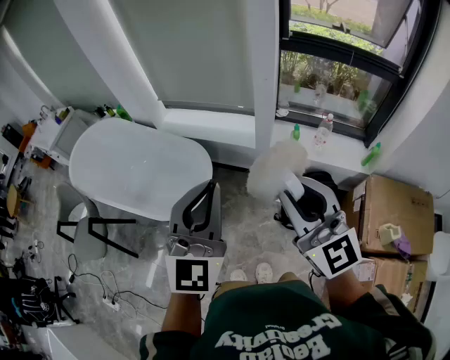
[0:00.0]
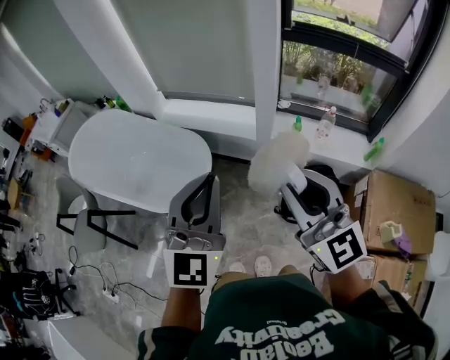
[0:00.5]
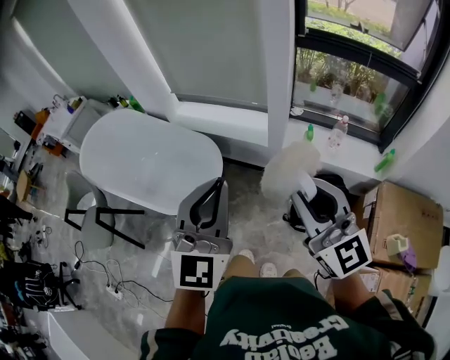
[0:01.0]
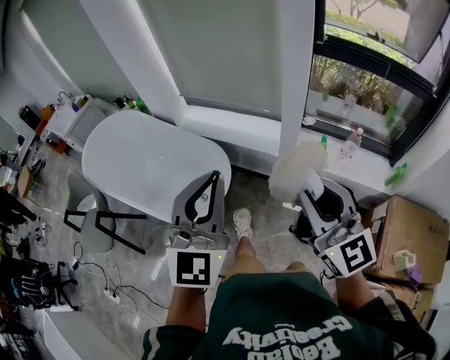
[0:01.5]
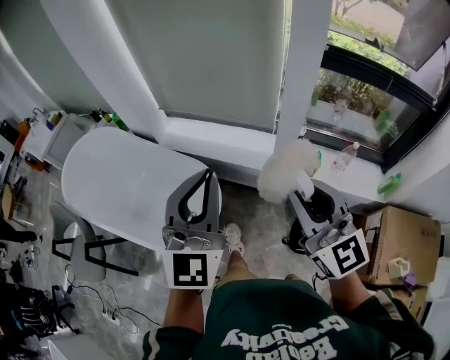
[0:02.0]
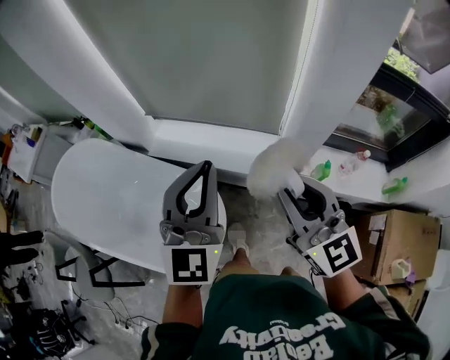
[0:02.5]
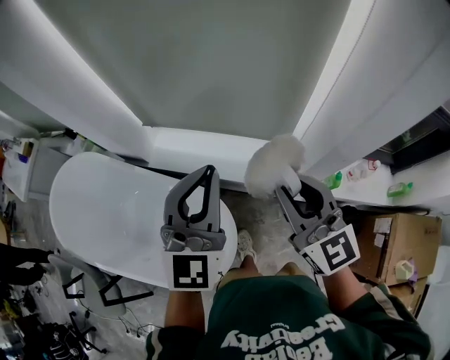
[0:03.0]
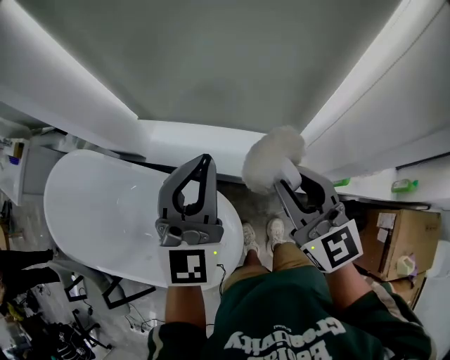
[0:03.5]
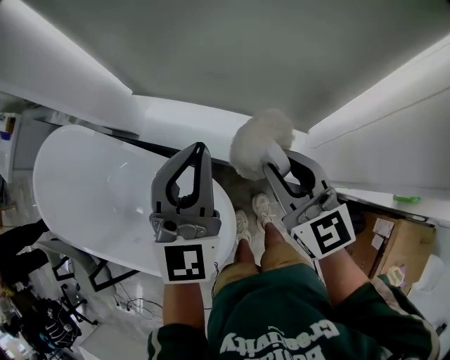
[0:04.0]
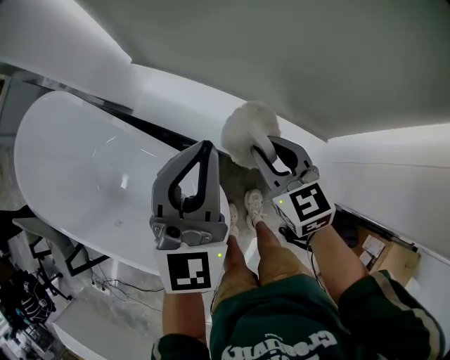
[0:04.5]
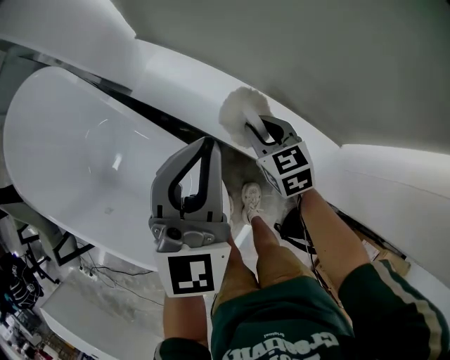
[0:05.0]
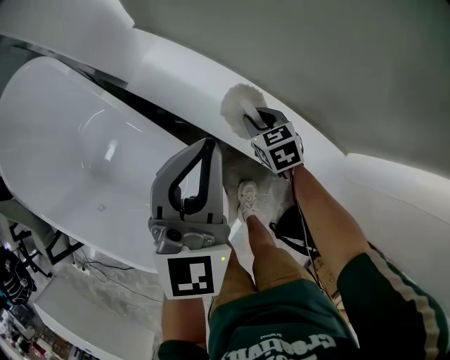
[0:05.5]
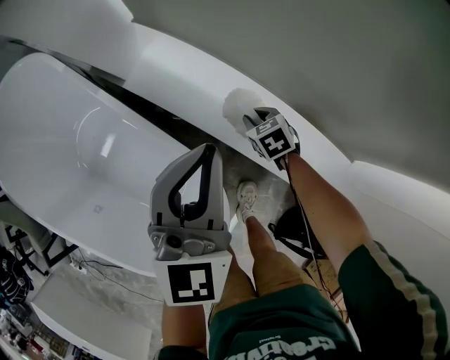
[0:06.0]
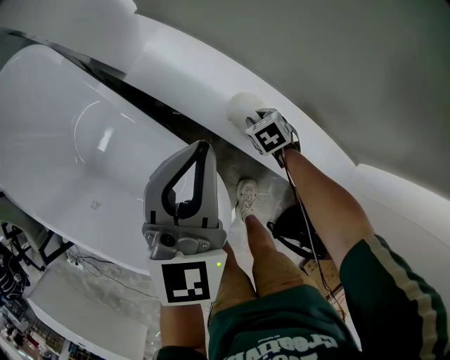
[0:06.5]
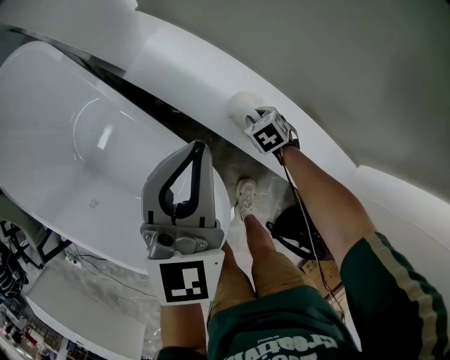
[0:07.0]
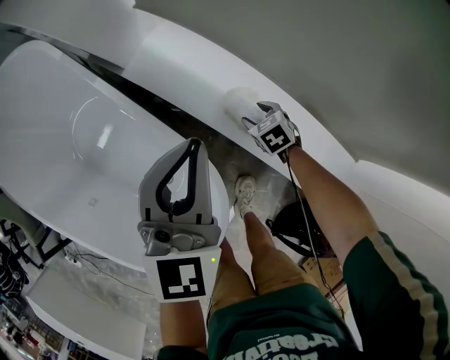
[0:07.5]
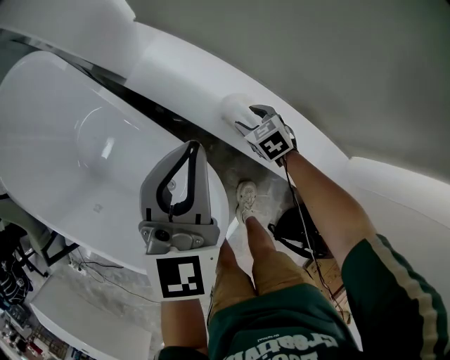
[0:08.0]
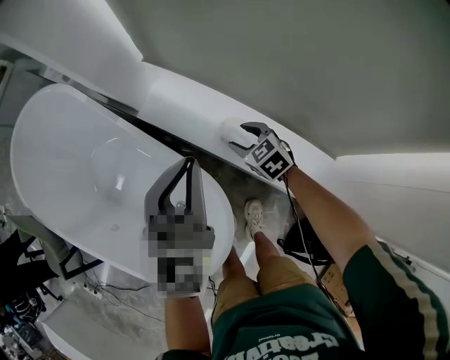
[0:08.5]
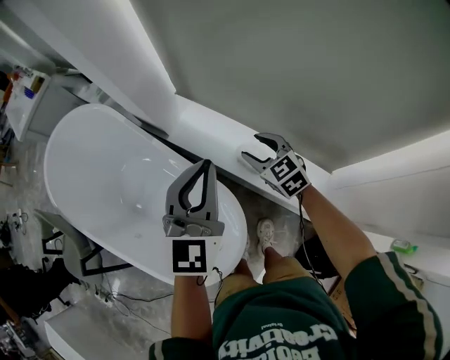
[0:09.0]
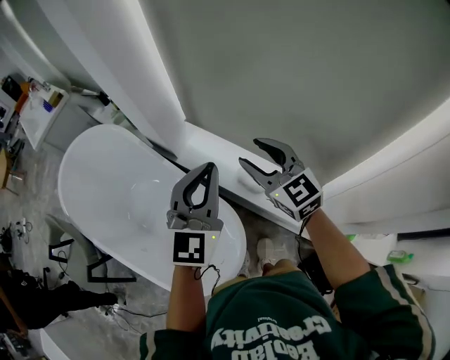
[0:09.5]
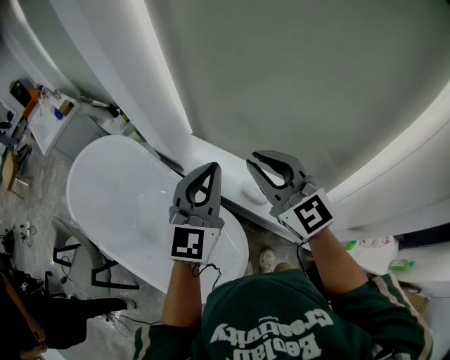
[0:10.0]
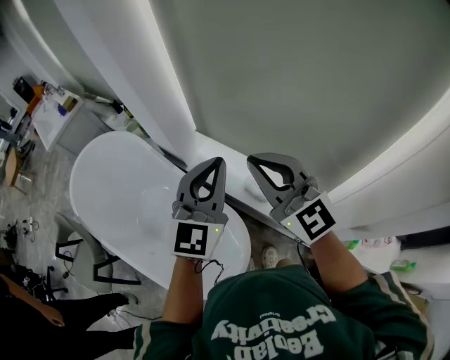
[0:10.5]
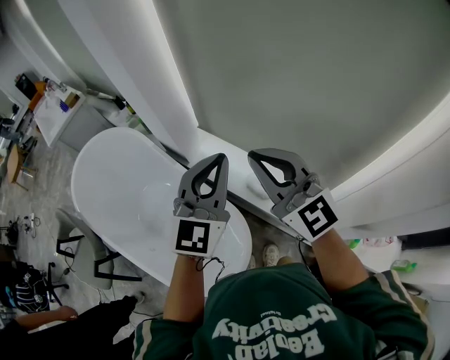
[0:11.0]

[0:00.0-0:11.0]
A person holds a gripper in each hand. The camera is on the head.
0:00.0 to 0:02.0: Both grippers move forward, roughly 20 cm.
0:02.0 to 0:03.5: The grippers both shift forward by roughly 35 cm.
0:03.5 to 0:05.5: The right gripper travels downward and forward by some 50 cm, and points its fingers about 50 degrees further downward. The left gripper travels downward and forward by some 25 cm, and turns by some 30 degrees.
0:05.5 to 0:07.5: The right gripper is displaced downward by approximately 15 cm, and opens its fingers; the left gripper travels downward by some 5 cm.
0:07.5 to 0:09.0: The right gripper goes some 35 cm upward, and tilts its fingers about 30 degrees upward. Meanwhile the left gripper goes about 20 cm upward.
0:09.0 to 0:11.0: The right gripper travels upward by approximately 35 cm, angles its fingers upward, by some 40 degrees, and closes. The left gripper heads upward, covering approximately 15 cm.

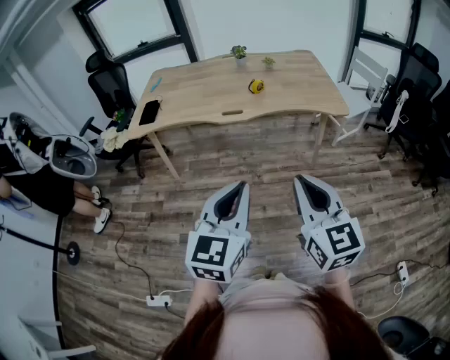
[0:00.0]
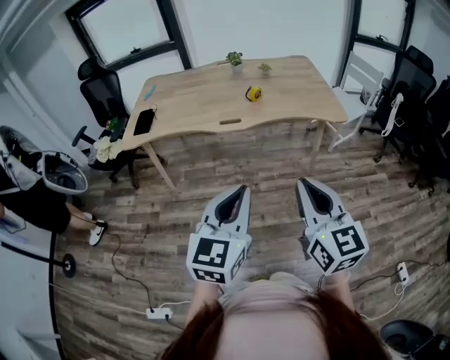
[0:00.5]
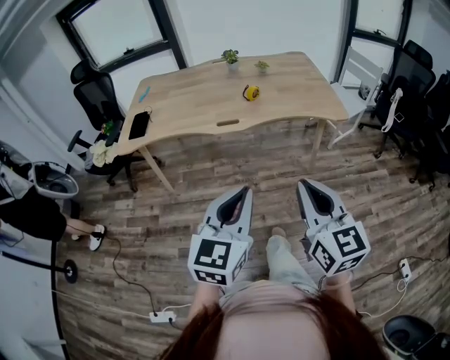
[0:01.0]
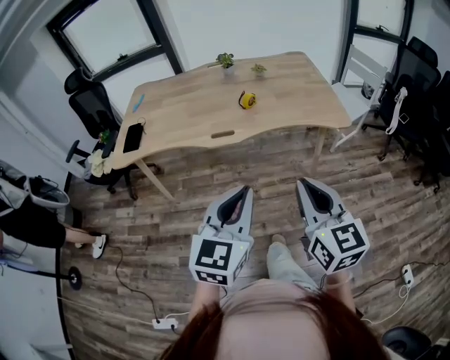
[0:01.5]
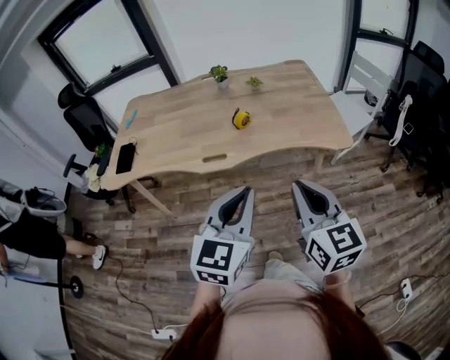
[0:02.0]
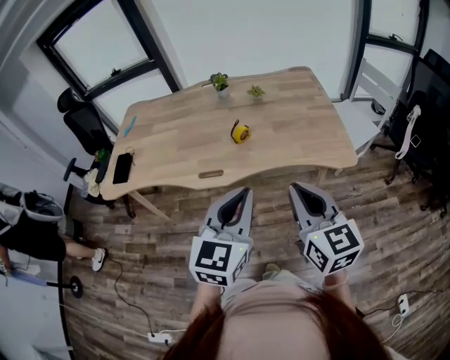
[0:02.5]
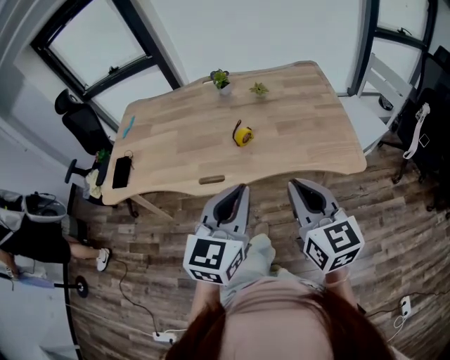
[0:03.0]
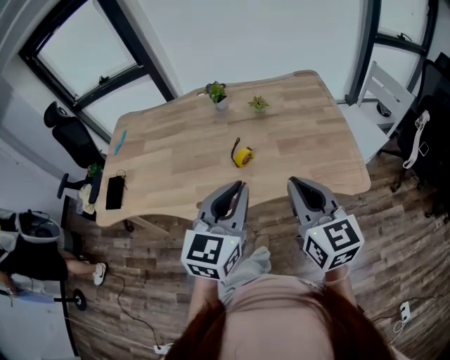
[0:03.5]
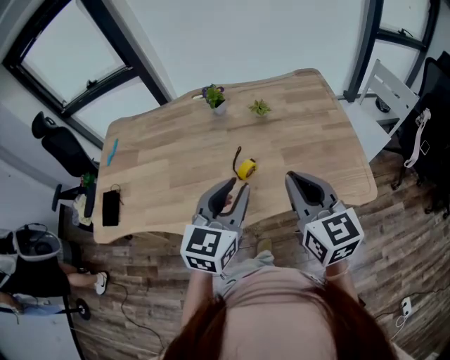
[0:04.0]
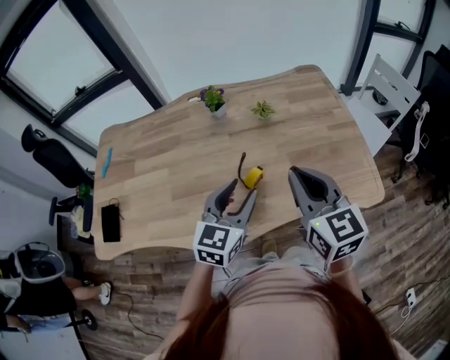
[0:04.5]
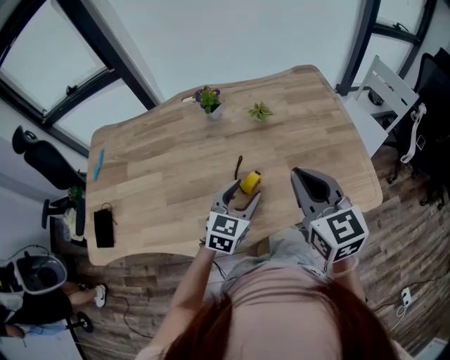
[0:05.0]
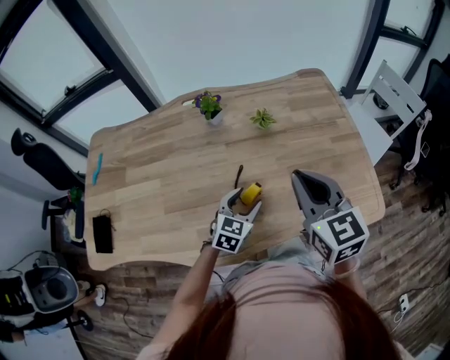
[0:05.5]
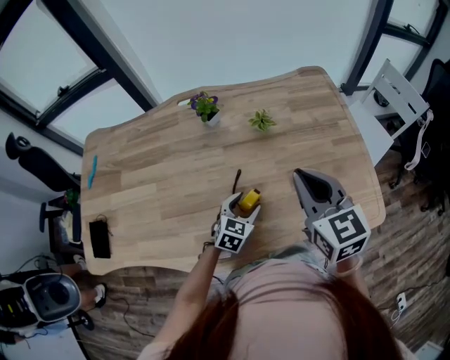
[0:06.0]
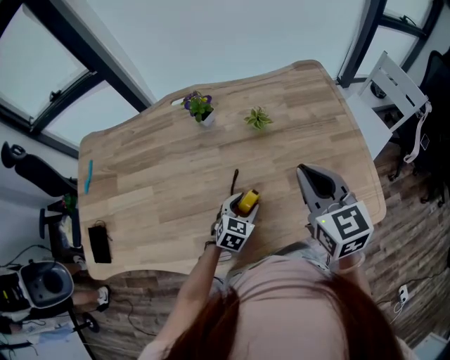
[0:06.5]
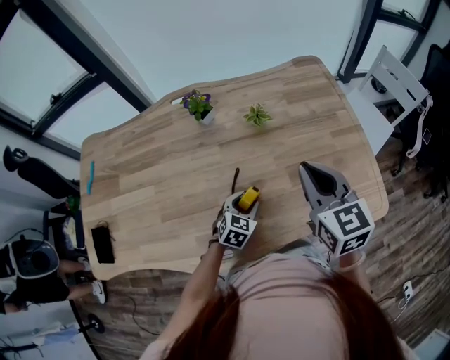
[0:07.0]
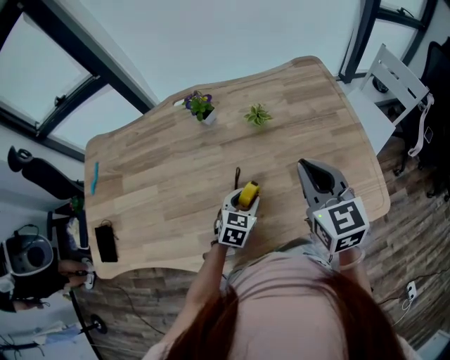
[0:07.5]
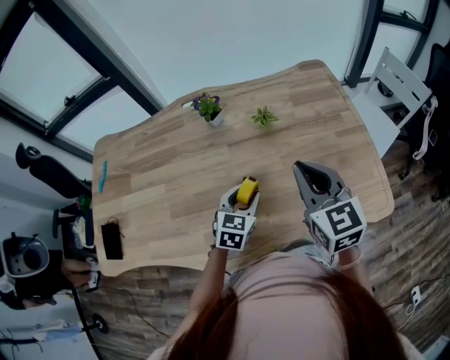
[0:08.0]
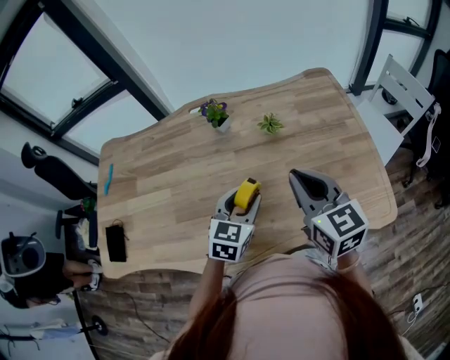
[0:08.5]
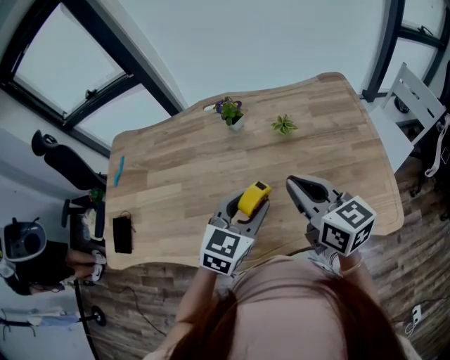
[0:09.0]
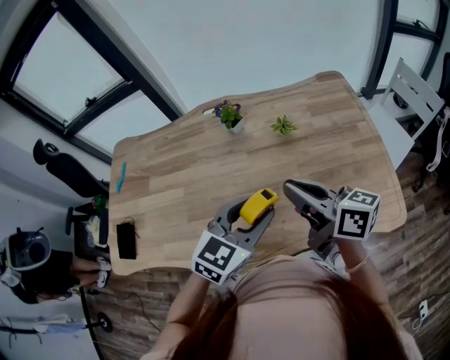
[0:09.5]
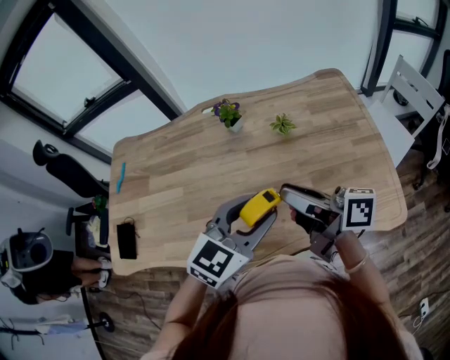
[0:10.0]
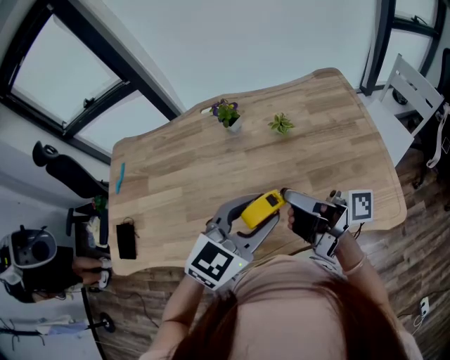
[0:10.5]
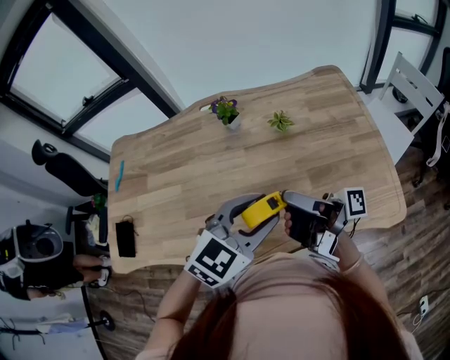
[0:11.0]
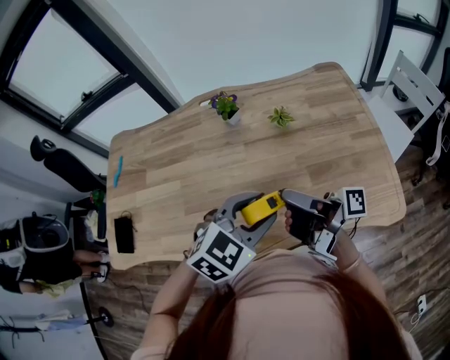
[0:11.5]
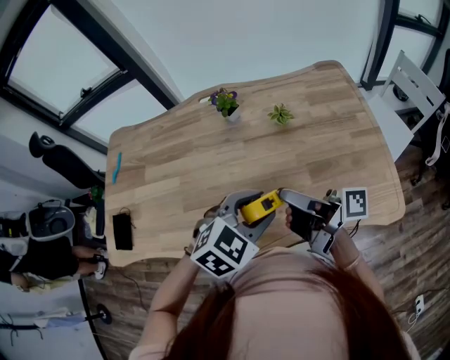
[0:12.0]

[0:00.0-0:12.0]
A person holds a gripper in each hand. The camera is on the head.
0:00.0 to 0:02.0: Both grippers travel together forward, roughly 25 cm.
0:02.0 to 0:04.0: Both grippers move forward, roughly 35 cm. The left gripper opens its fingers.
0:04.0 to 0:06.0: The left gripper shifts about 30 cm downward and forward, rotates approximately 30 degrees, and opens its fingers, while the right gripper heads forward, covering roughly 15 cm.
0:06.0 to 0:08.0: The left gripper heads upward, covering roughly 5 cm.
0:08.0 to 0:10.0: The right gripper is displaced to the left by approximately 5 cm, and rolls clockwise, seen from behind, by roughly 60 degrees. The left gripper shifts about 20 cm upward, and turns by roughly 20 degrees.
0:10.0 to 0:12.0: The right gripper swivels approximately 20 degrees. Meanwhile the left gripper travels downward by about 5 cm, and swivels some 20 degrees.

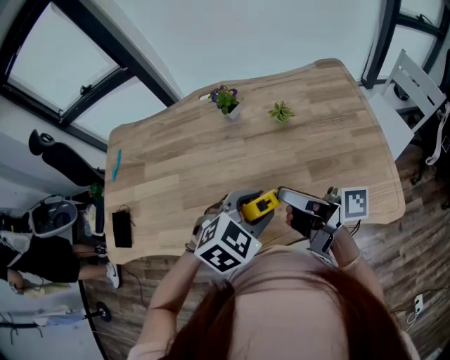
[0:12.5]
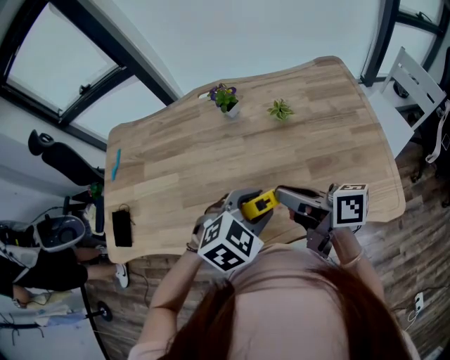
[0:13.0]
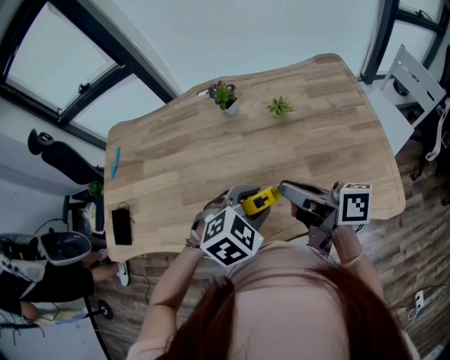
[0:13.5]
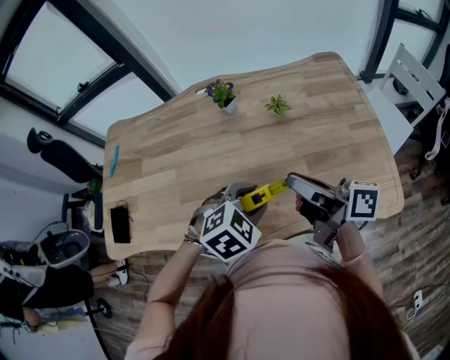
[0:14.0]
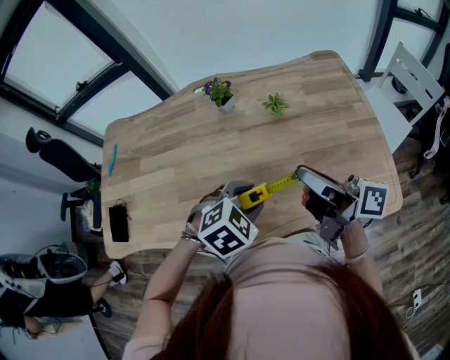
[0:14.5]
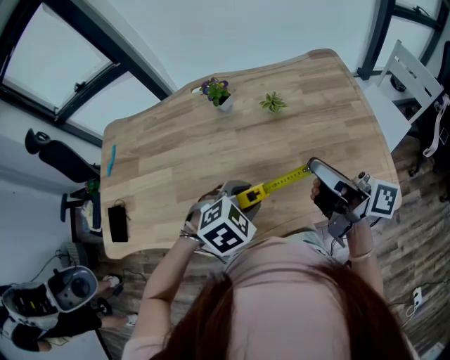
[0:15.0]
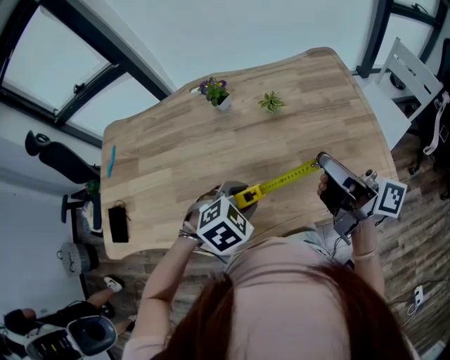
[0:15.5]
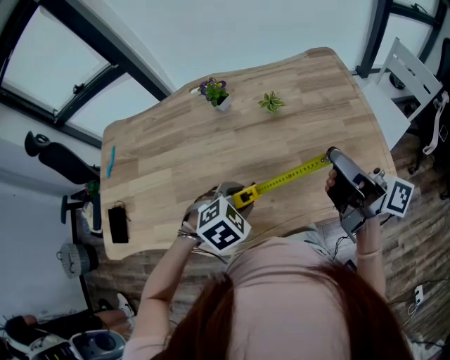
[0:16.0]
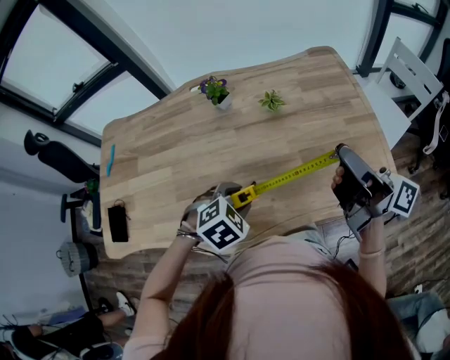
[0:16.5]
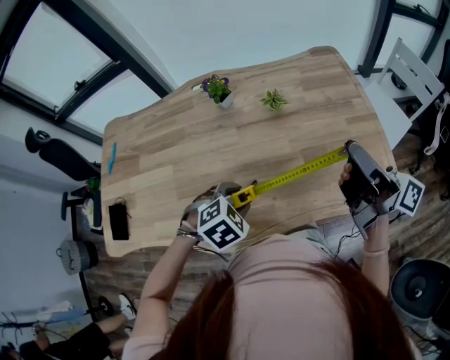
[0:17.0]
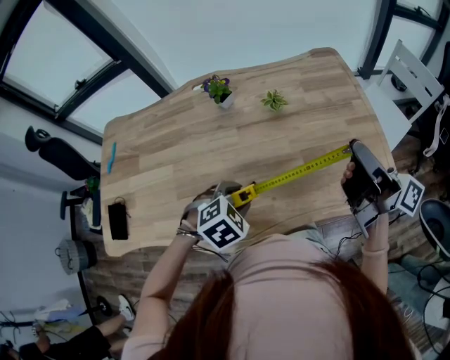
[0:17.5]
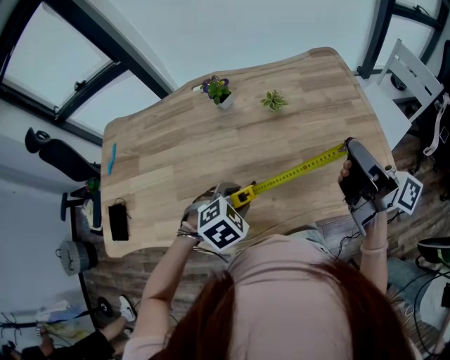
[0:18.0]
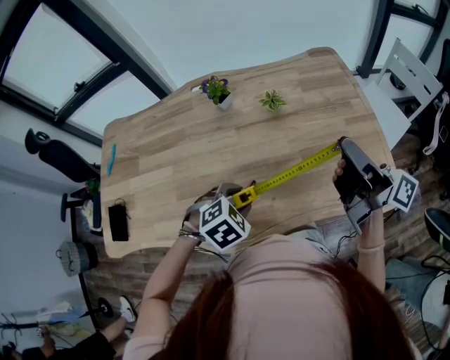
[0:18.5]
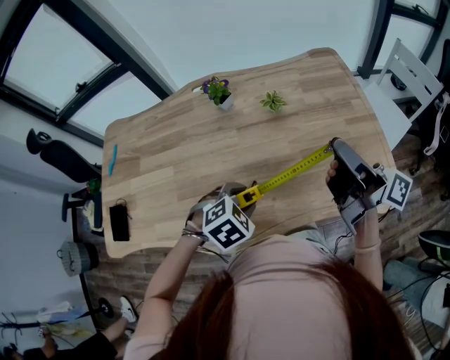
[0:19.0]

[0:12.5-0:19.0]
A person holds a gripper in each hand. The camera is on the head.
0:12.5 to 0:14.5: The right gripper moves to the right, some 5 cm.
0:14.5 to 0:17.0: The left gripper shifts by about 5 cm. Meanwhile the right gripper moves to the right, some 10 cm.
0:17.0 to 0:19.0: The grippers stay close to where they were, moving slightly.
